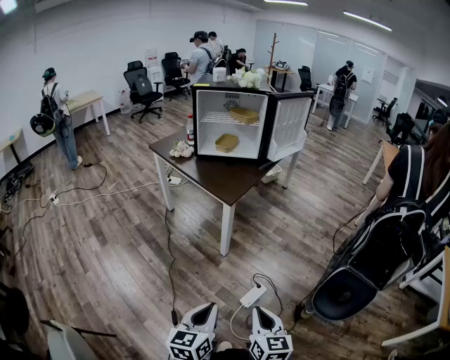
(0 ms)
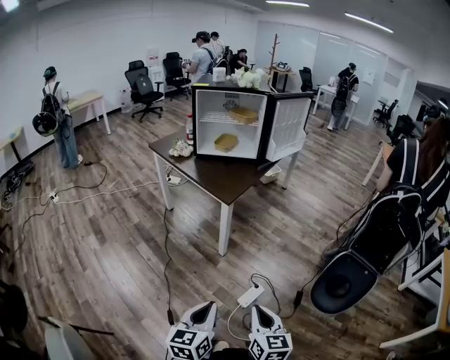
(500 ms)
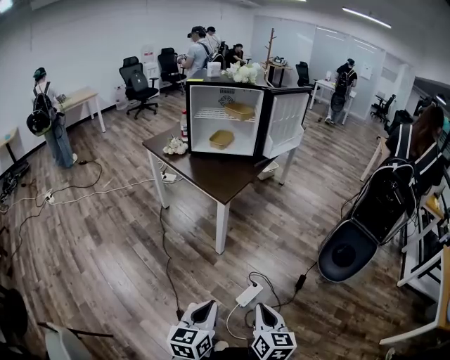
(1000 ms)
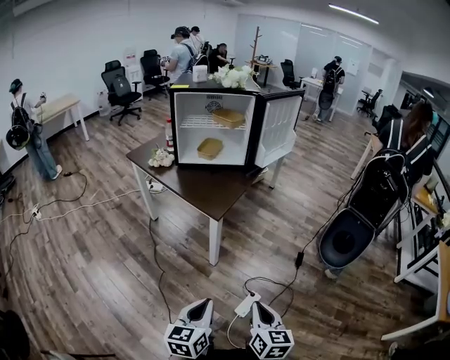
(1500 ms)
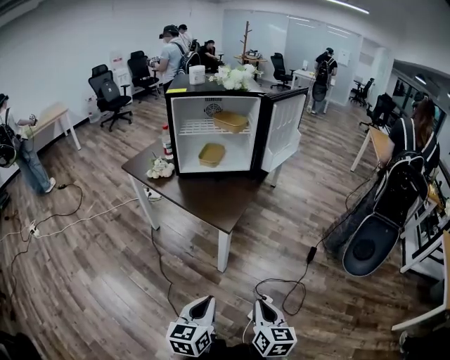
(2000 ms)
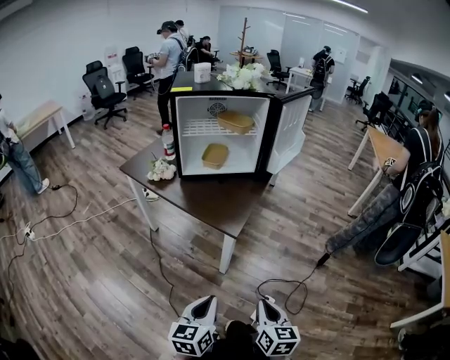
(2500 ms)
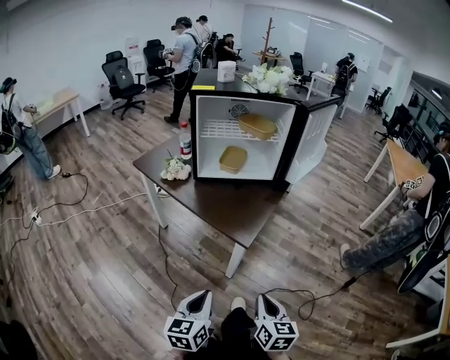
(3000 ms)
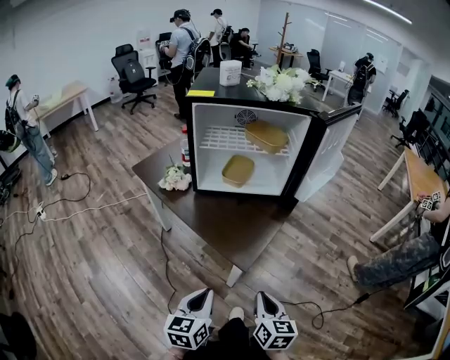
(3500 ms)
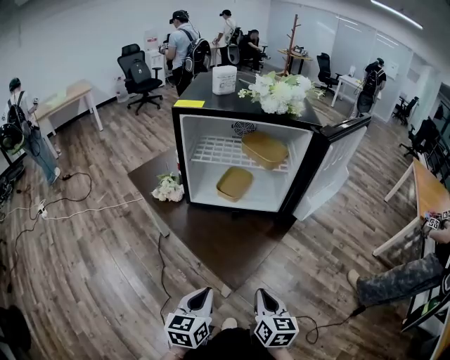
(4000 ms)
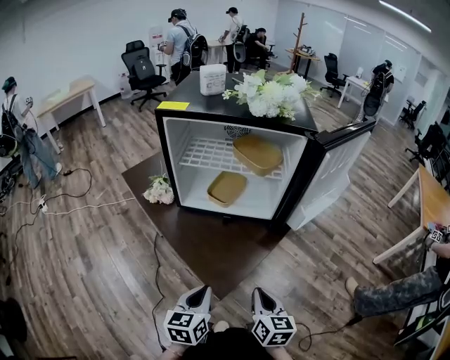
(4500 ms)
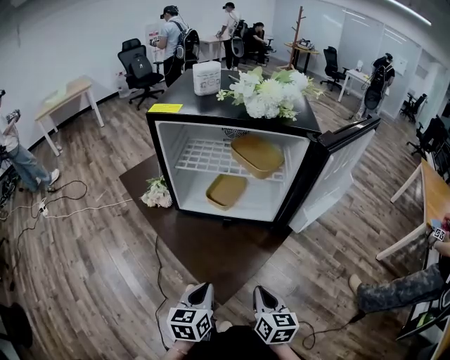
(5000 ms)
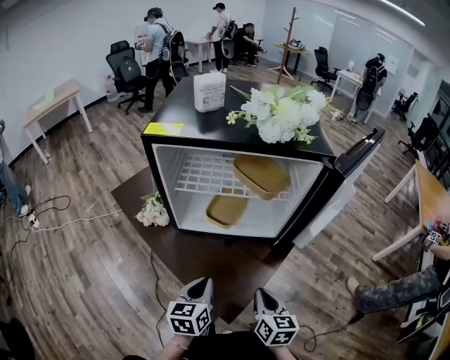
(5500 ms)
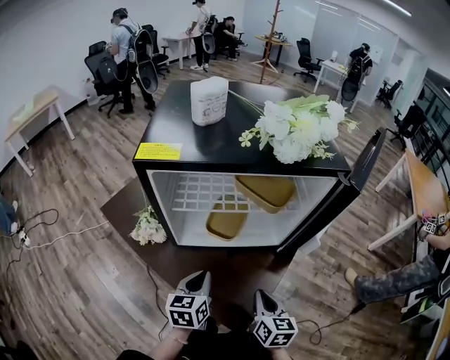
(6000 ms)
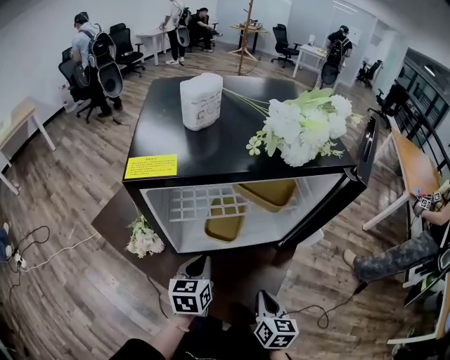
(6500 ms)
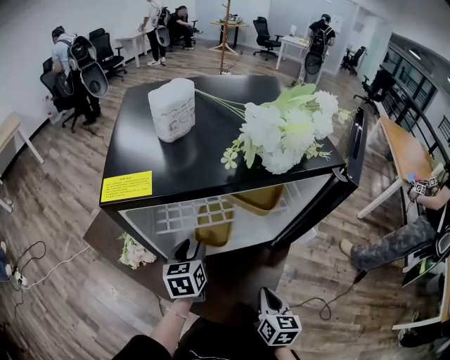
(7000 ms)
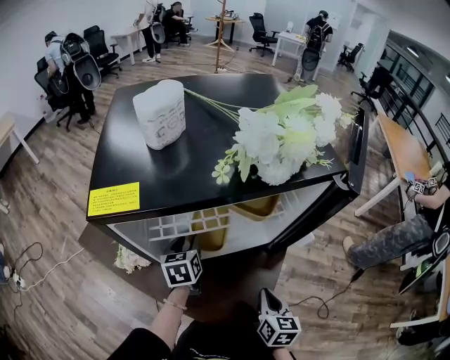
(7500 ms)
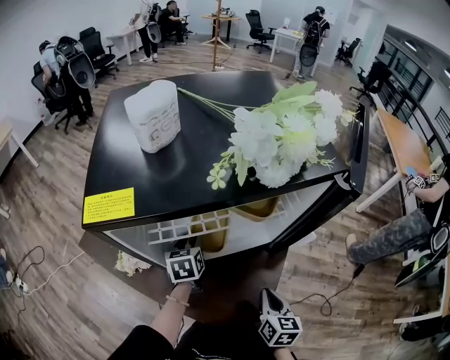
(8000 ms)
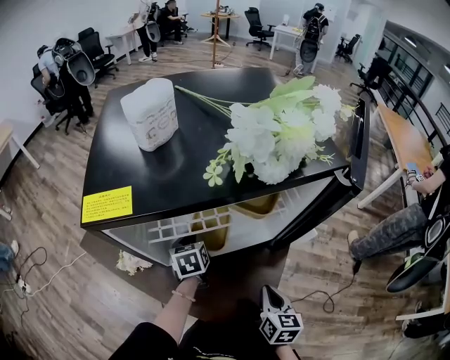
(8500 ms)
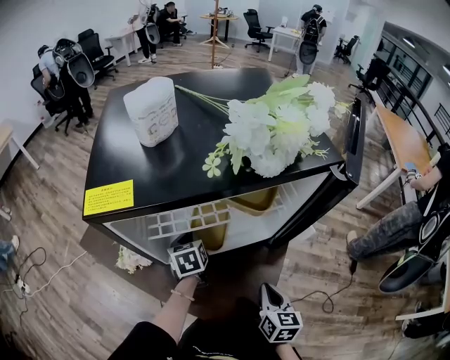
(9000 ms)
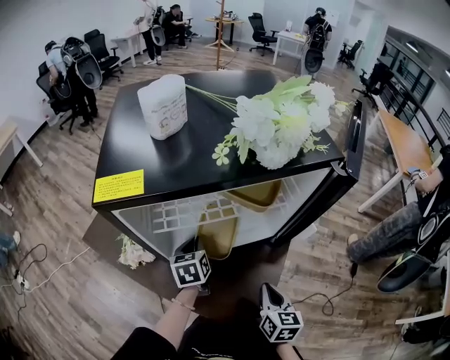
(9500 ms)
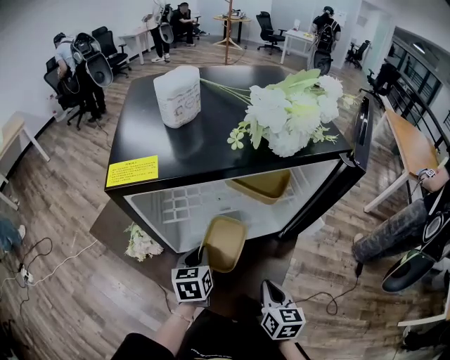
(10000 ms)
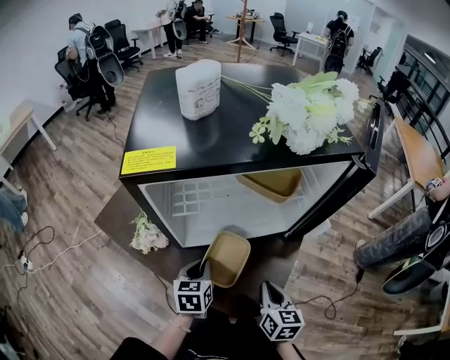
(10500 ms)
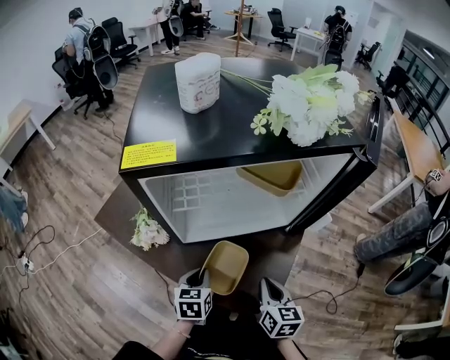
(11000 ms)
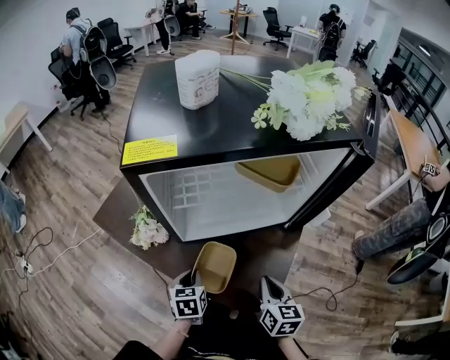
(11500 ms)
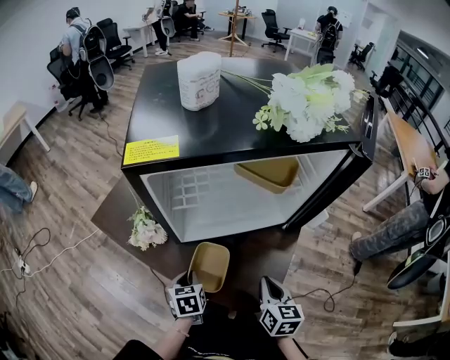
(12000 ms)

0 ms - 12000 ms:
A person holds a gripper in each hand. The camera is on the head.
0 ms - 2000 ms: The left gripper shifts approximately 25 cm forward and to the left; the right gripper goes some 20 cm forward.
2000 ms - 4000 ms: The grippers both shift forward by roughly 30 cm.
4000 ms - 6000 ms: The two grippers go some 20 cm forward.
6000 ms - 8000 ms: The left gripper is displaced forward by some 20 cm, and opens up.
8000 ms - 10000 ms: The left gripper moves backward, roughly 10 cm, and closes.
10000 ms - 12000 ms: The left gripper goes approximately 15 cm backward, downward and to the left.

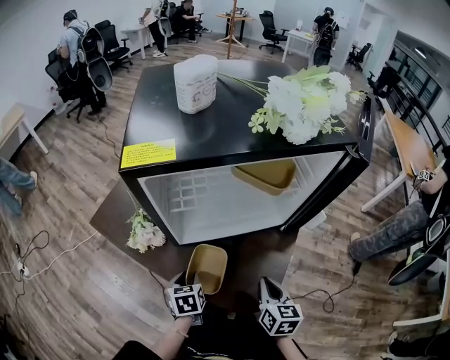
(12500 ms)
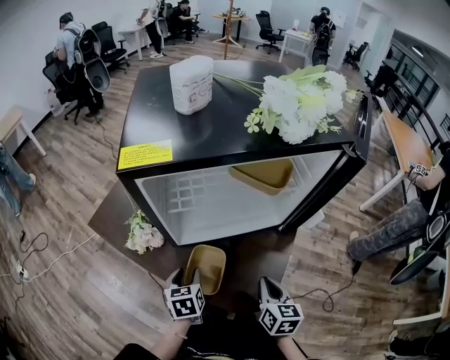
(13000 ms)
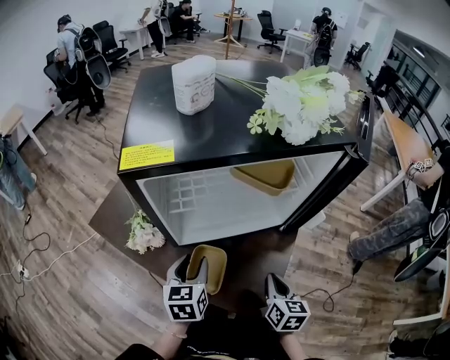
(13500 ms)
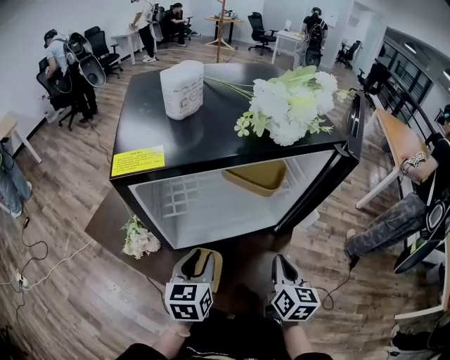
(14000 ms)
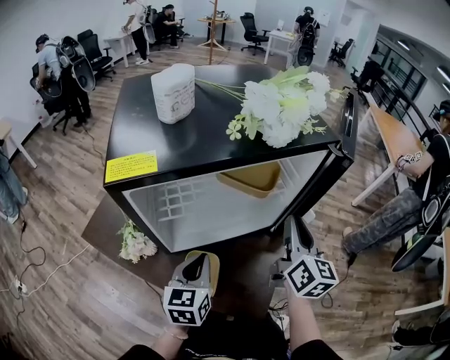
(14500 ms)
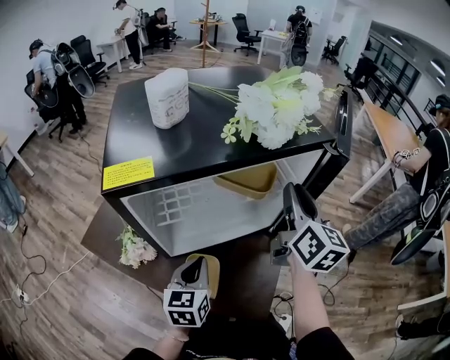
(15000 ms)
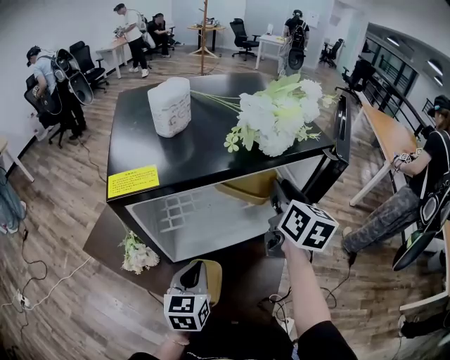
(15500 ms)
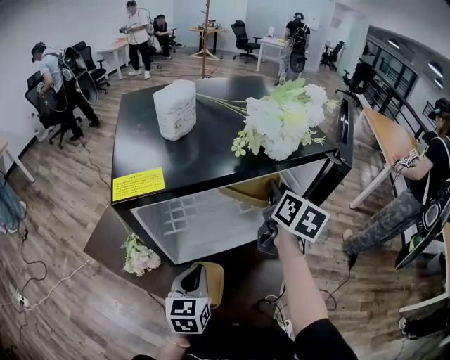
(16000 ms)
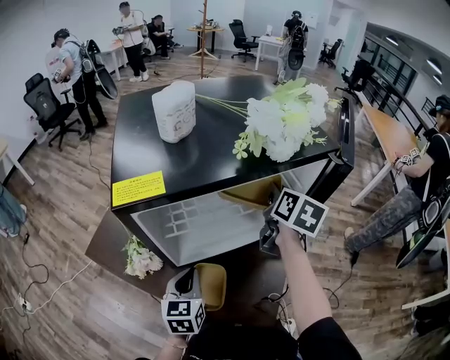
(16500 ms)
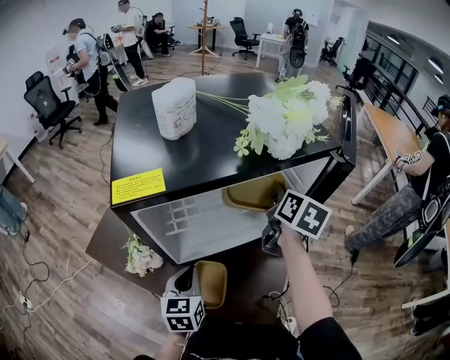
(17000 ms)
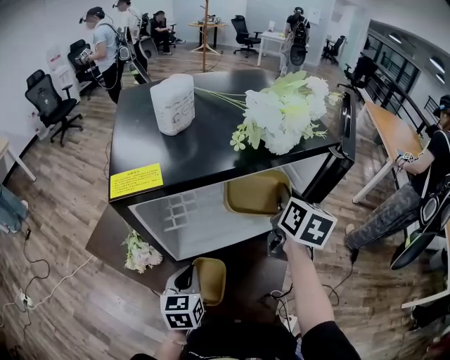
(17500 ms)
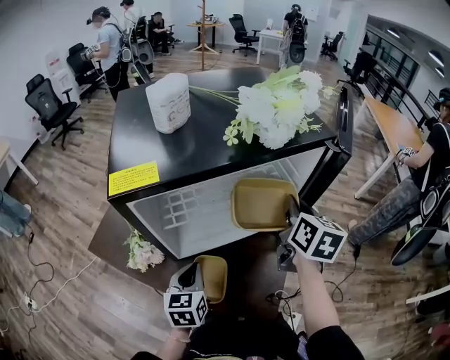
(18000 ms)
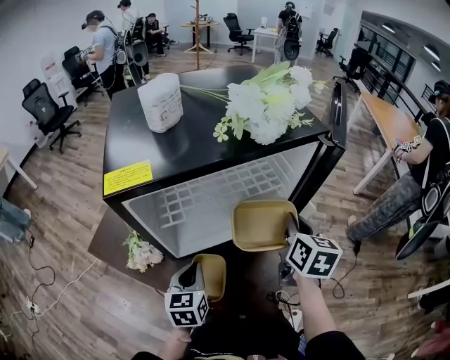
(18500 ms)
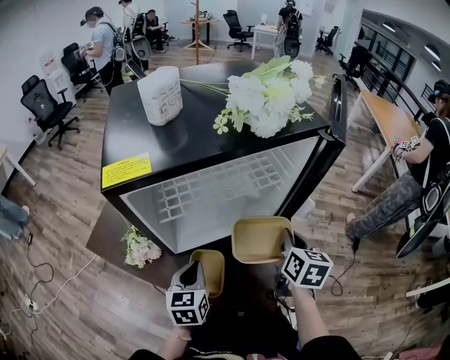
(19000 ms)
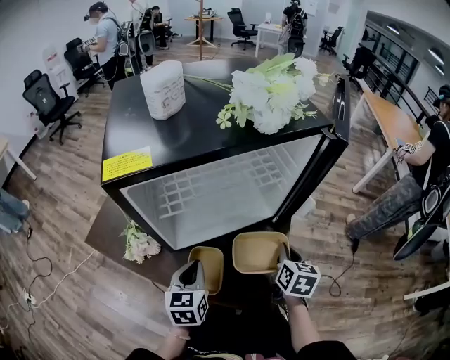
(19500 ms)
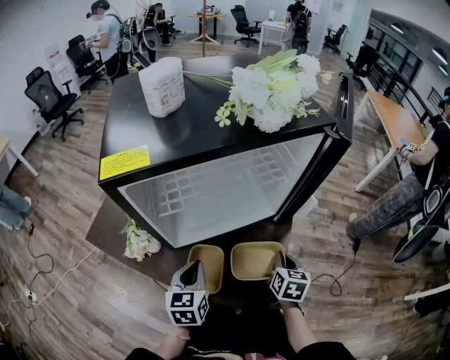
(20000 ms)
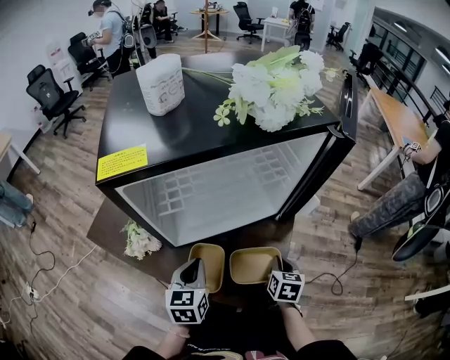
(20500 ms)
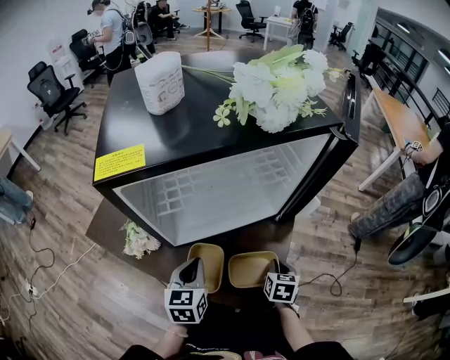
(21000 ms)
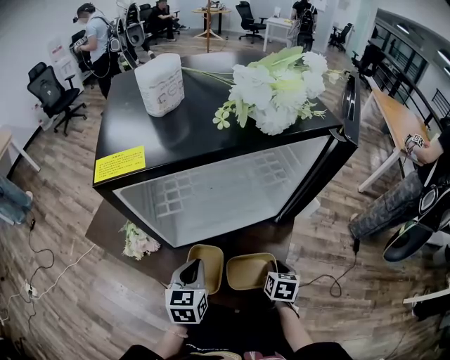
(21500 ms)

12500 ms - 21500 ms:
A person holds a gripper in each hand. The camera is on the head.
12500 ms - 14500 ms: The right gripper travels upward and forward by roughly 25 cm, and turns by about 30 degrees. Meanwhile the left gripper moves upward and to the right, about 20 cm, rotates roughly 30 degrees, and closes up.
14500 ms - 17000 ms: The right gripper is displaced forward by about 10 cm, and rotates approximately 20 degrees; the left gripper travels to the left by approximately 5 cm.
17000 ms - 19500 ms: The right gripper moves backward and downward, about 25 cm.
19500 ms - 21500 ms: The right gripper heads downward, covering some 10 cm.

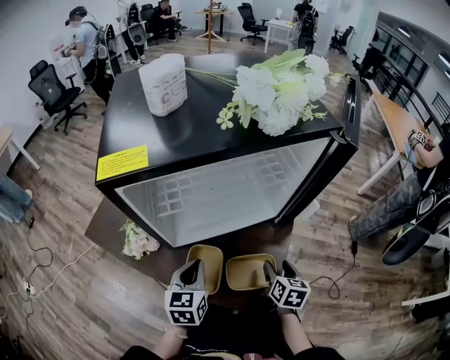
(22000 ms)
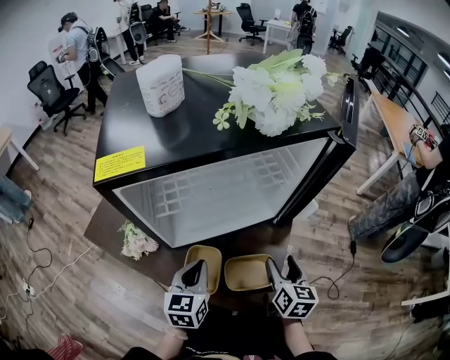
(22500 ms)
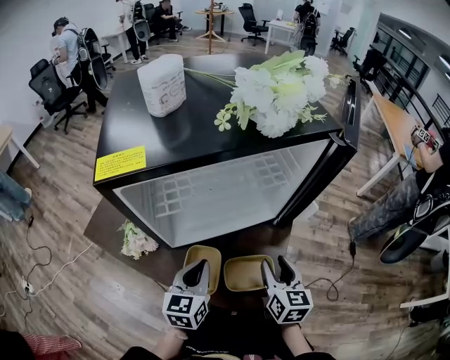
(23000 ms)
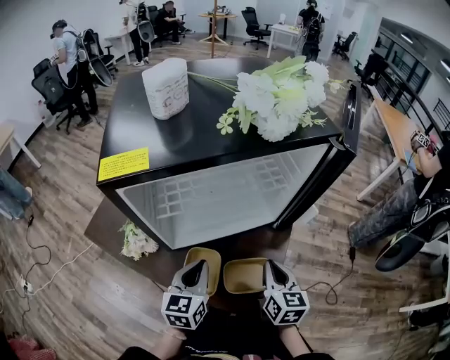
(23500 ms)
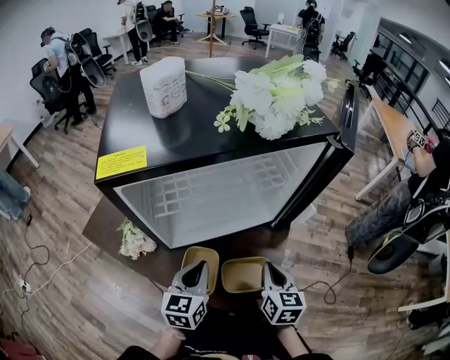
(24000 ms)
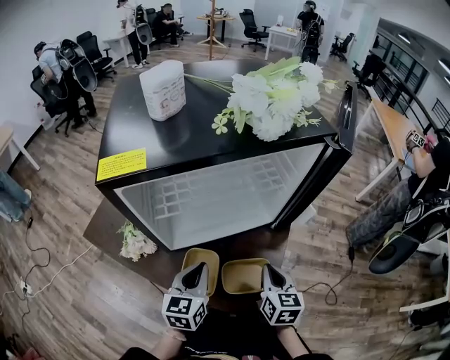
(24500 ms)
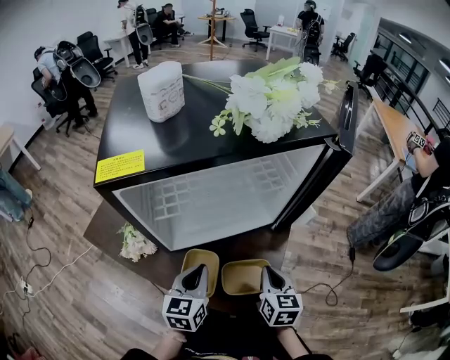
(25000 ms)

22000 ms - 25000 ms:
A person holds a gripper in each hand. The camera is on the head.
22000 ms - 23500 ms: The right gripper is displaced upward by some 10 cm, and closes its fingers.
23500 ms - 25000 ms: The grippers stay close to where they were, moving slightly.

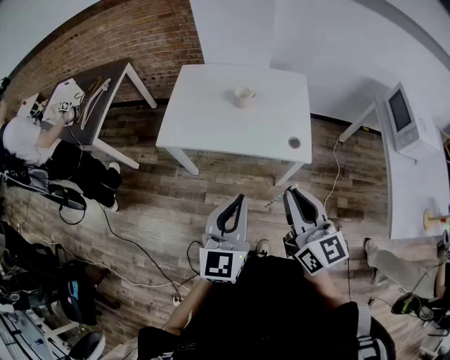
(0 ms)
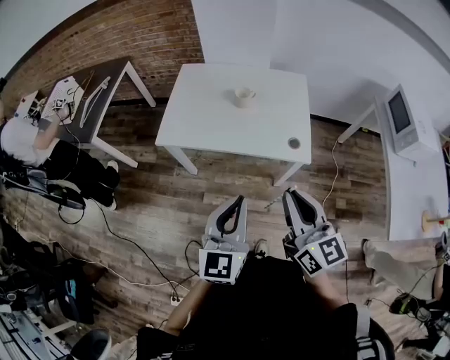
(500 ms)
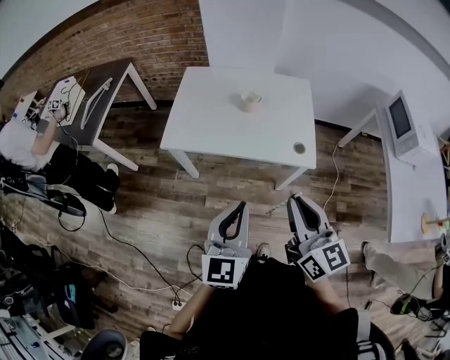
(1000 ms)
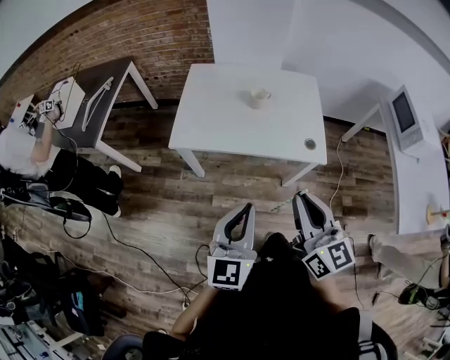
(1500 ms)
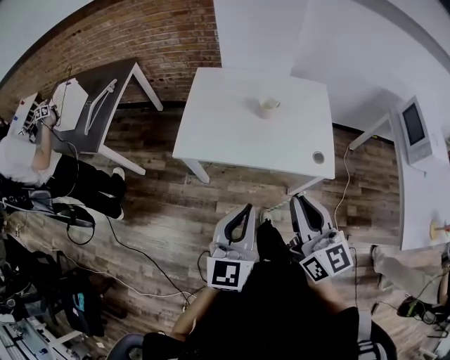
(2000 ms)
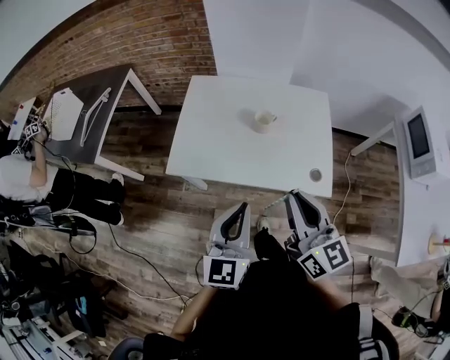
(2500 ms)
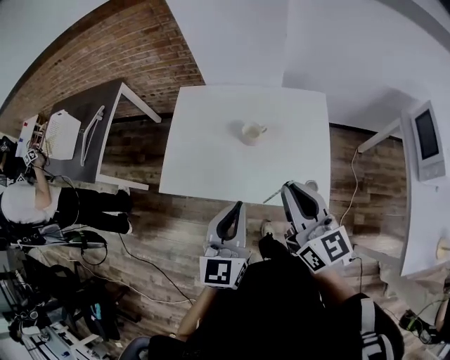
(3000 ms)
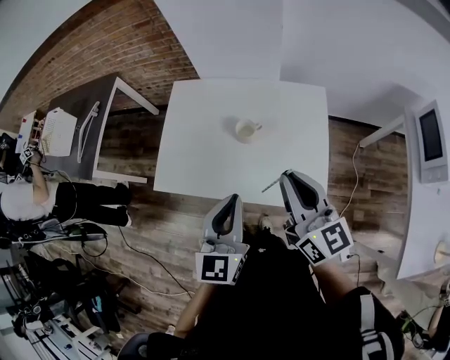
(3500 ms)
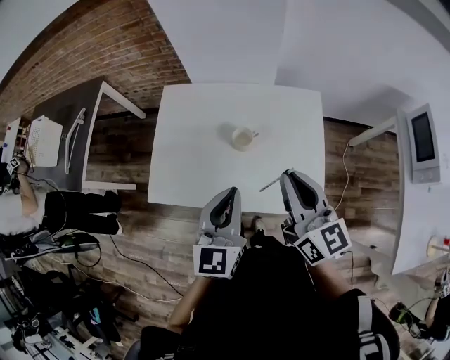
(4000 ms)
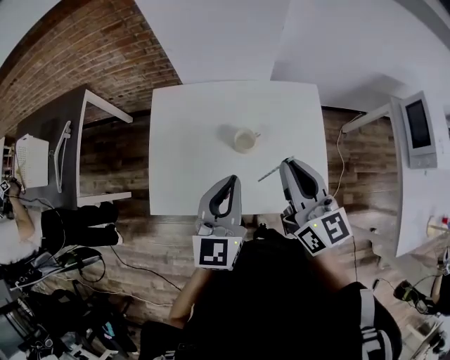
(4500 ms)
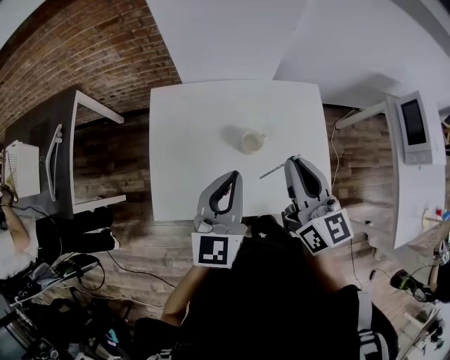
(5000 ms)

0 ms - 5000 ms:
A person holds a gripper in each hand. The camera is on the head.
0 ms - 2500 ms: Both grippers travel together forward, about 15 cm.
2500 ms - 5000 ms: Both grippers travel together forward, some 25 cm.
